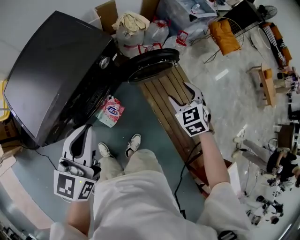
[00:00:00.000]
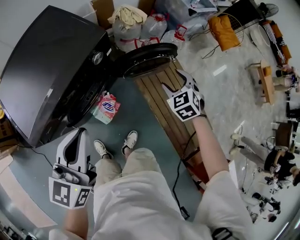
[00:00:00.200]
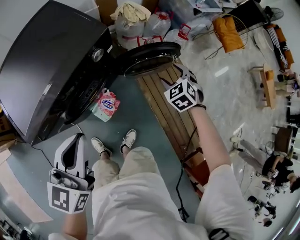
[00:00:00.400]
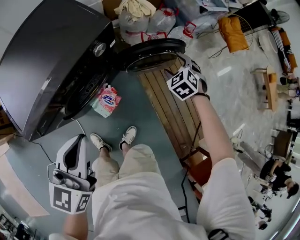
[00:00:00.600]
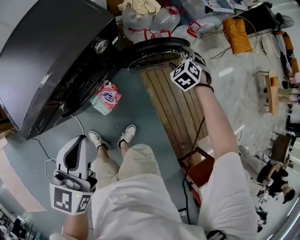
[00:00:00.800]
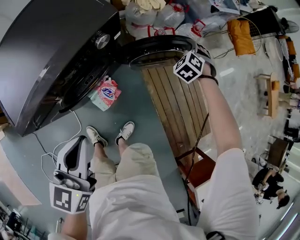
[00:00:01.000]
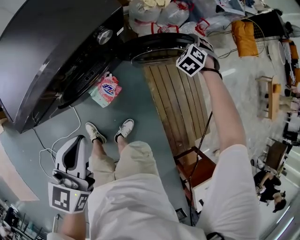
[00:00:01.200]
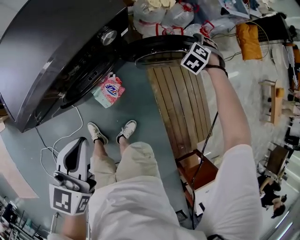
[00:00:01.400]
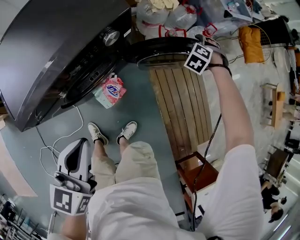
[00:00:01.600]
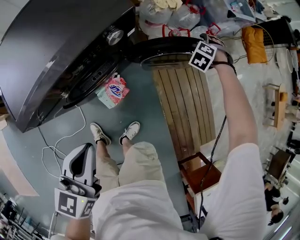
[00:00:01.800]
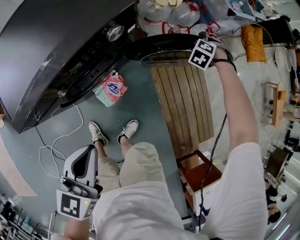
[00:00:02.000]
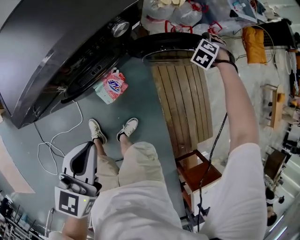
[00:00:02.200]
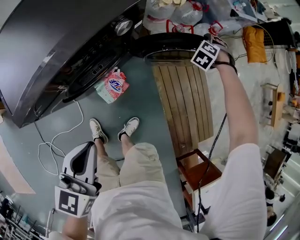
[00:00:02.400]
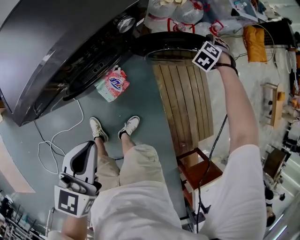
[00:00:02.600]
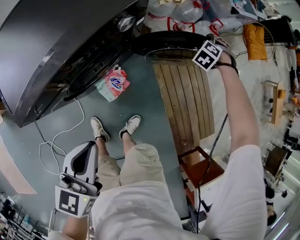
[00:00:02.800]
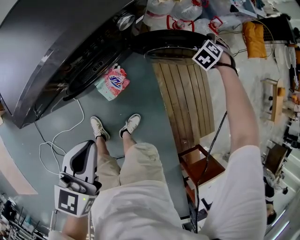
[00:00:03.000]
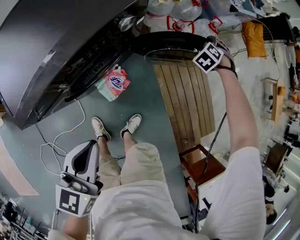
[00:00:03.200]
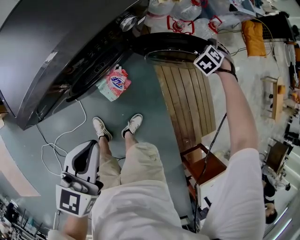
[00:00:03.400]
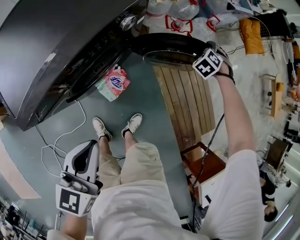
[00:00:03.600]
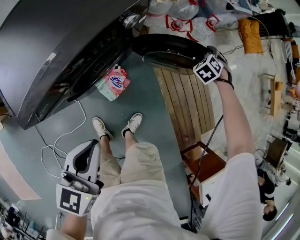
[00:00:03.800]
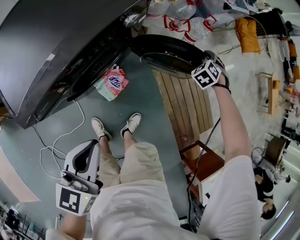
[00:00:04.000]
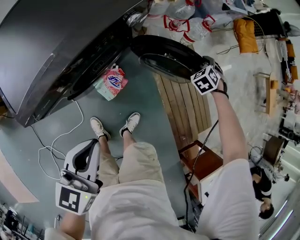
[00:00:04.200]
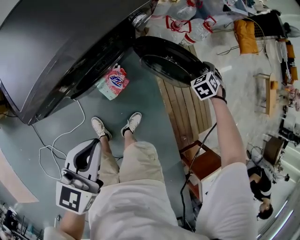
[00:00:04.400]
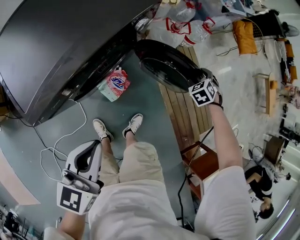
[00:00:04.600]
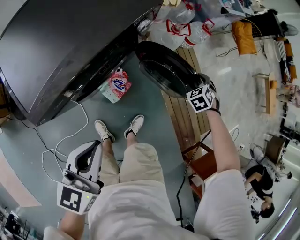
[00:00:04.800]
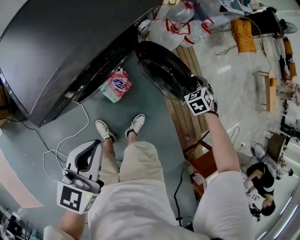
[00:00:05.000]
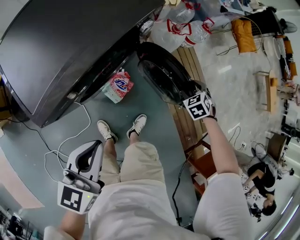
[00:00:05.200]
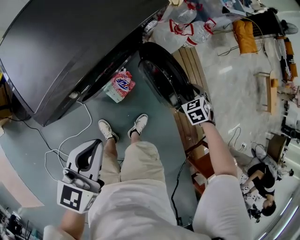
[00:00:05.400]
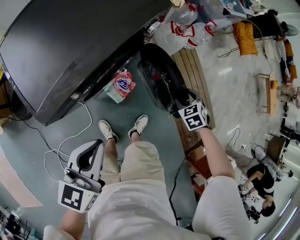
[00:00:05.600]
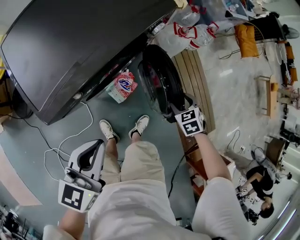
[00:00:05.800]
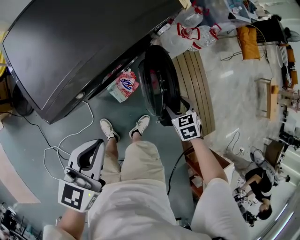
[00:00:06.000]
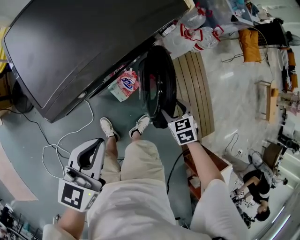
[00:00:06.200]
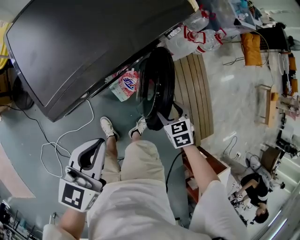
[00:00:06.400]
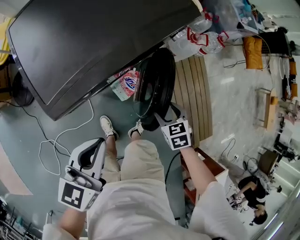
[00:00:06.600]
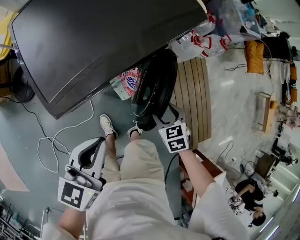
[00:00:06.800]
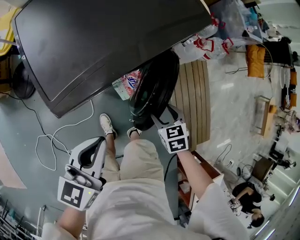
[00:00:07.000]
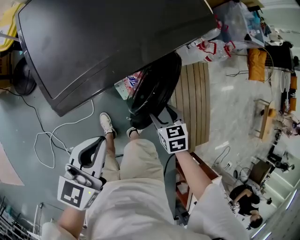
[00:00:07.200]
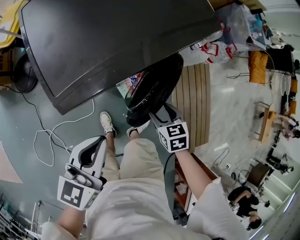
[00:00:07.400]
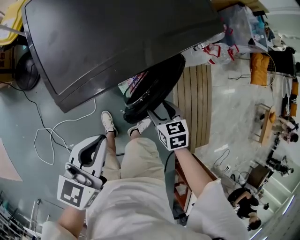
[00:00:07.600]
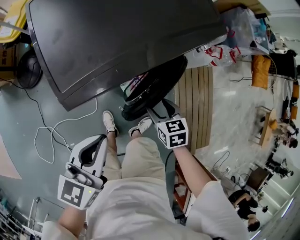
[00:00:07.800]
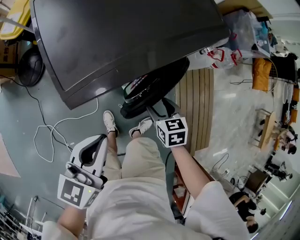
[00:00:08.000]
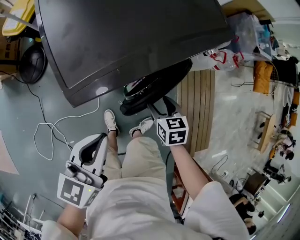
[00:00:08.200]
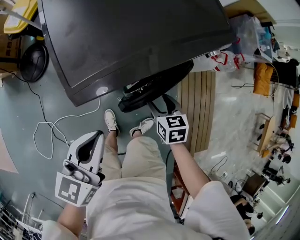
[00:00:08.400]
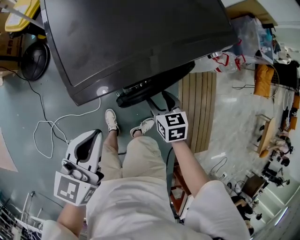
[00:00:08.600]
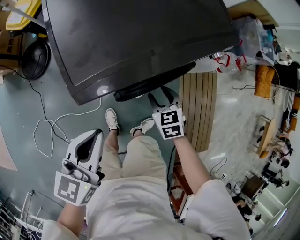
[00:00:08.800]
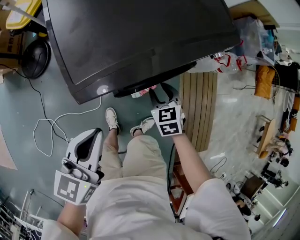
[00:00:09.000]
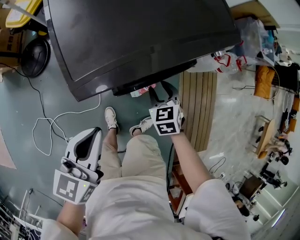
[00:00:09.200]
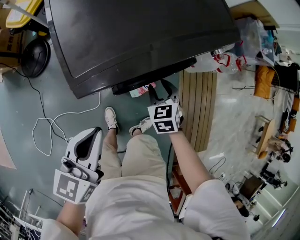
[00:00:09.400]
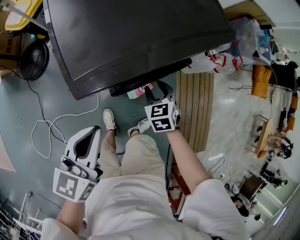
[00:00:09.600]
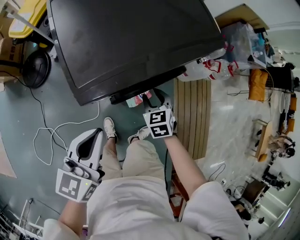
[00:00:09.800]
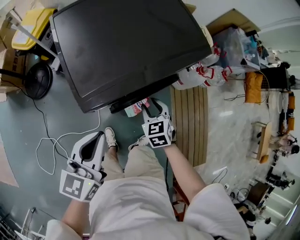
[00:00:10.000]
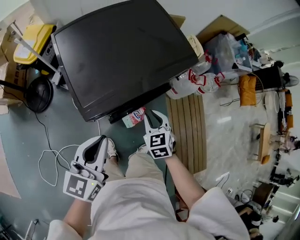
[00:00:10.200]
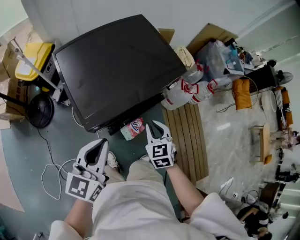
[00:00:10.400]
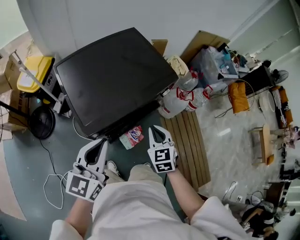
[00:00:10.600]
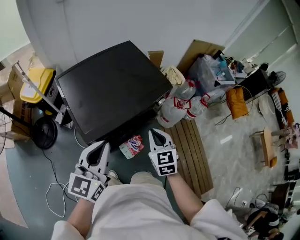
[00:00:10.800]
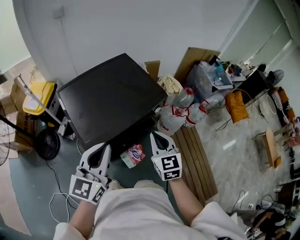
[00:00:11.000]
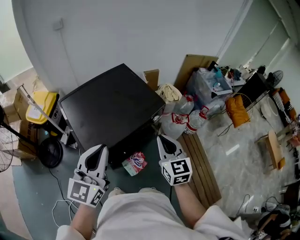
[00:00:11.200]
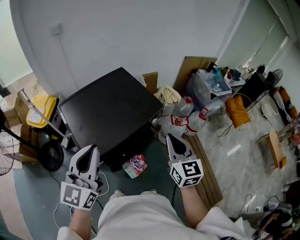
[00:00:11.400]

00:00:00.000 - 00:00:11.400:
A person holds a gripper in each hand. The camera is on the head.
00:00:00.000 - 00:00:01.400: The right gripper goes approximately 30 cm forward and downward, and changes its angle by about 40 degrees. The left gripper shifts roughly 10 cm downward.
00:00:01.400 - 00:00:02.800: The left gripper ends up about 5 cm from where it was.
00:00:02.800 - 00:00:04.200: The left gripper shifts by about 5 cm. The right gripper travels backward by approximately 10 cm.
00:00:04.200 - 00:00:05.600: The left gripper is displaced to the left by approximately 5 cm, while the right gripper goes roughly 20 cm backward, and rotates some 20 degrees.
00:00:05.600 - 00:00:07.200: The right gripper travels to the left by some 20 cm, and swivels approximately 20 degrees; the left gripper is displaced to the left by about 5 cm.
00:00:07.200 - 00:00:08.600: The left gripper is displaced to the left by about 5 cm, while the right gripper goes about 10 cm to the left and forward.
00:00:08.600 - 00:00:10.000: Both grippers travel together upward, roughly 5 cm.
00:00:10.000 - 00:00:11.400: The left gripper heads upward, covering approximately 25 cm, and turns by some 30 degrees, while the right gripper shifts approximately 40 cm upward and to the right, tilts its fingers roughly 40 degrees upward, and closes its fingers.

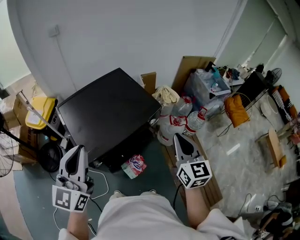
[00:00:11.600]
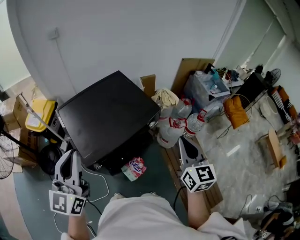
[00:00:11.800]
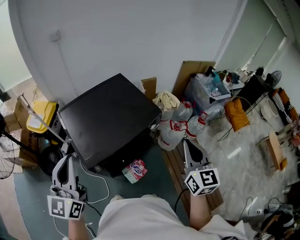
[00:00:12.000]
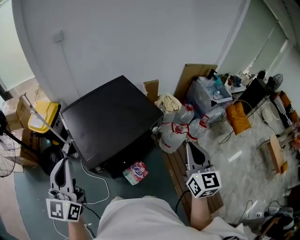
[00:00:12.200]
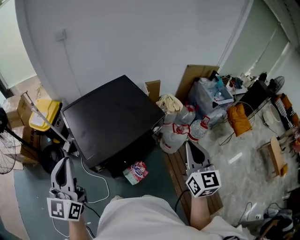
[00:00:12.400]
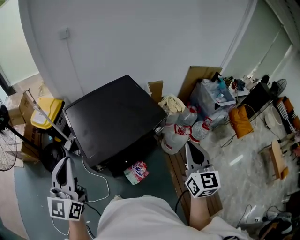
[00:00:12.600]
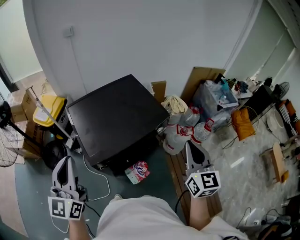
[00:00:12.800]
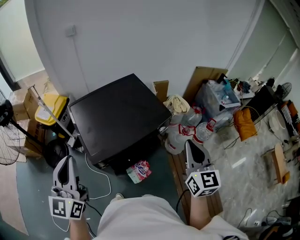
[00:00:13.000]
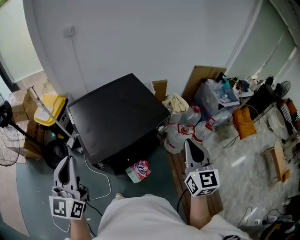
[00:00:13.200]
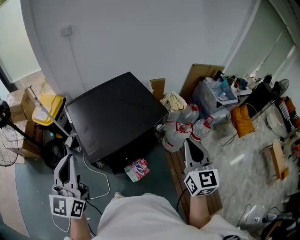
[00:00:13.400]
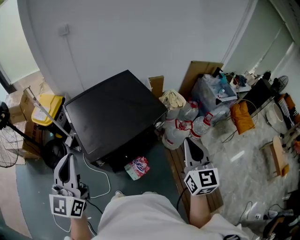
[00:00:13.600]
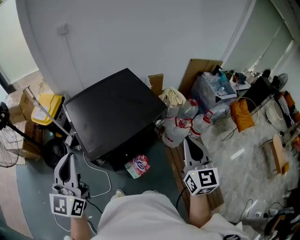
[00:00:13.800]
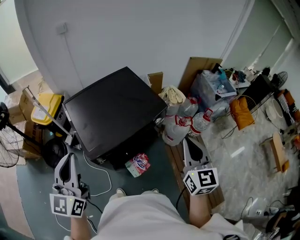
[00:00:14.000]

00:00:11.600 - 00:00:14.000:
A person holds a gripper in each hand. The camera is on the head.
00:00:11.600 - 00:00:12.800: The left gripper moves to the left, some 5 cm.
00:00:12.800 - 00:00:14.000: The grippers make only small movements.

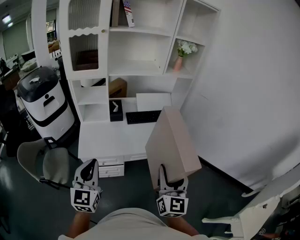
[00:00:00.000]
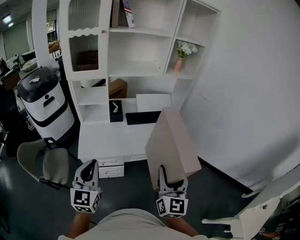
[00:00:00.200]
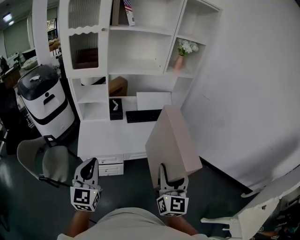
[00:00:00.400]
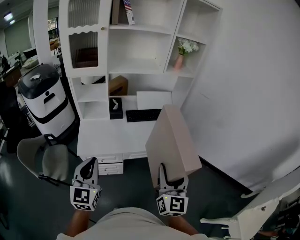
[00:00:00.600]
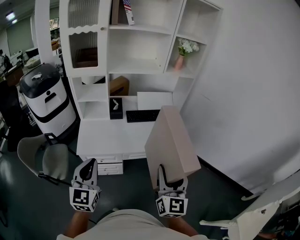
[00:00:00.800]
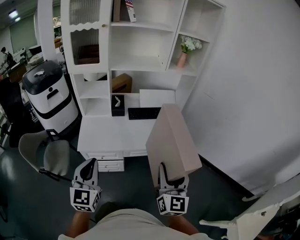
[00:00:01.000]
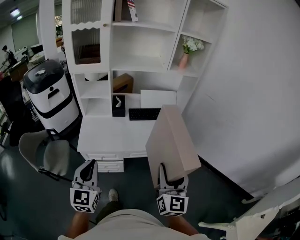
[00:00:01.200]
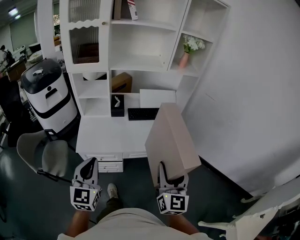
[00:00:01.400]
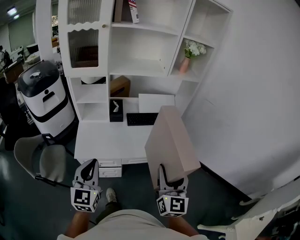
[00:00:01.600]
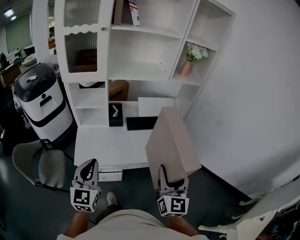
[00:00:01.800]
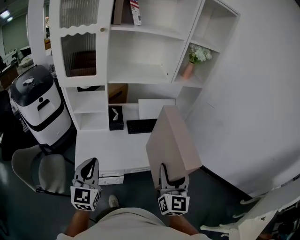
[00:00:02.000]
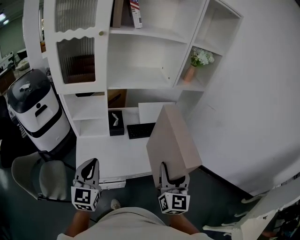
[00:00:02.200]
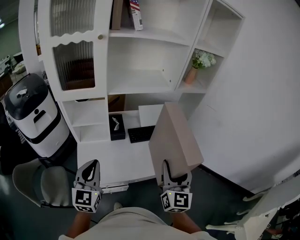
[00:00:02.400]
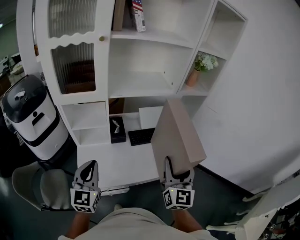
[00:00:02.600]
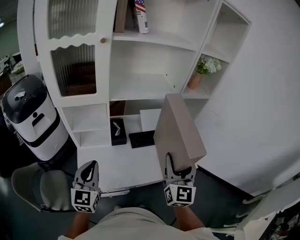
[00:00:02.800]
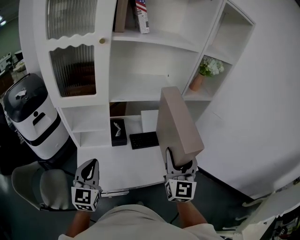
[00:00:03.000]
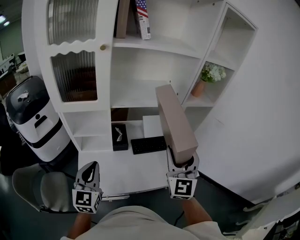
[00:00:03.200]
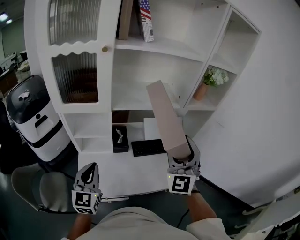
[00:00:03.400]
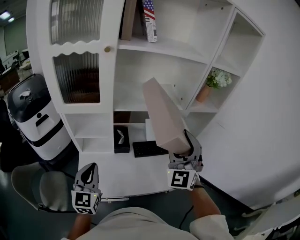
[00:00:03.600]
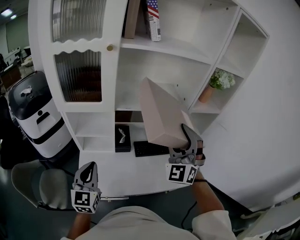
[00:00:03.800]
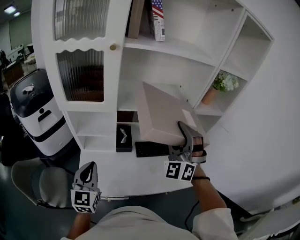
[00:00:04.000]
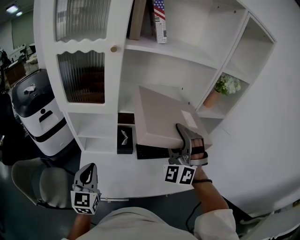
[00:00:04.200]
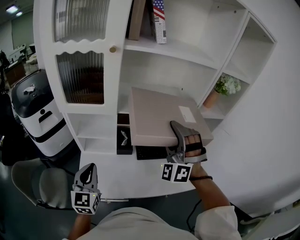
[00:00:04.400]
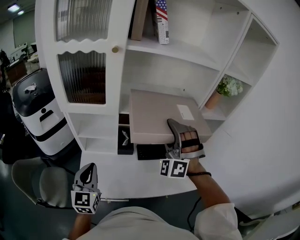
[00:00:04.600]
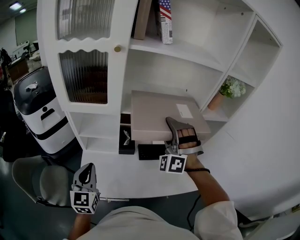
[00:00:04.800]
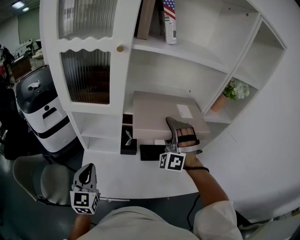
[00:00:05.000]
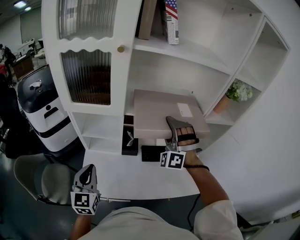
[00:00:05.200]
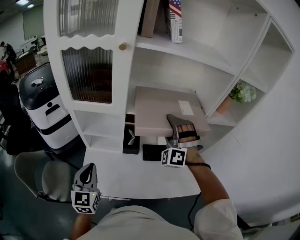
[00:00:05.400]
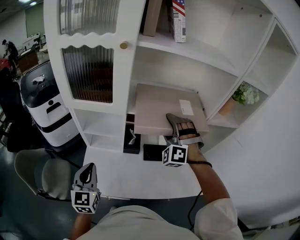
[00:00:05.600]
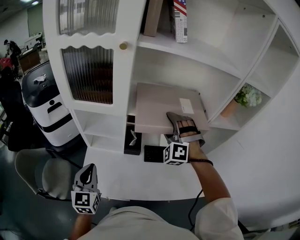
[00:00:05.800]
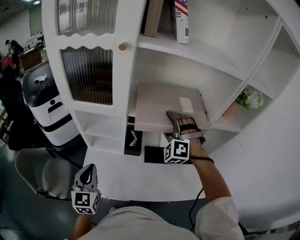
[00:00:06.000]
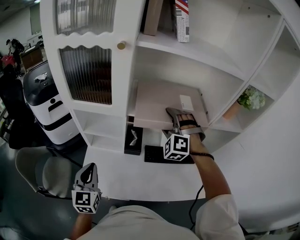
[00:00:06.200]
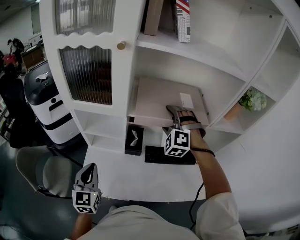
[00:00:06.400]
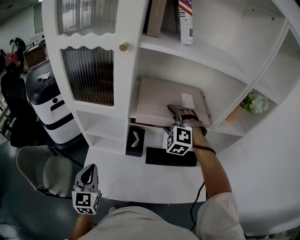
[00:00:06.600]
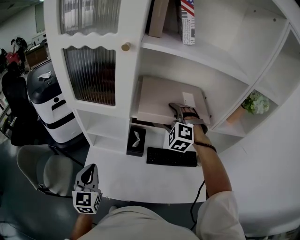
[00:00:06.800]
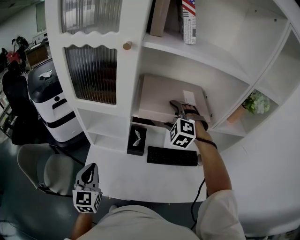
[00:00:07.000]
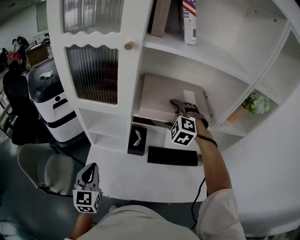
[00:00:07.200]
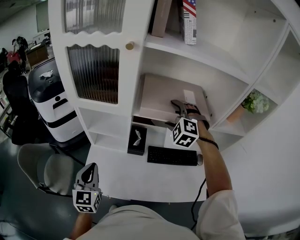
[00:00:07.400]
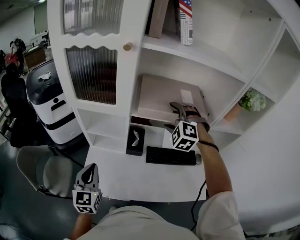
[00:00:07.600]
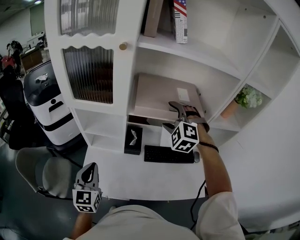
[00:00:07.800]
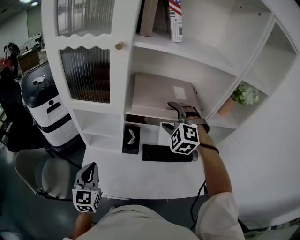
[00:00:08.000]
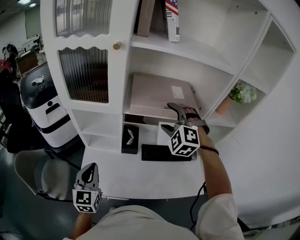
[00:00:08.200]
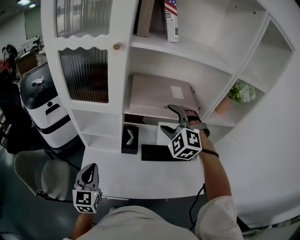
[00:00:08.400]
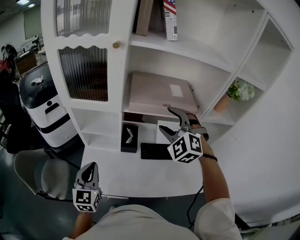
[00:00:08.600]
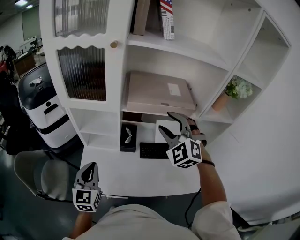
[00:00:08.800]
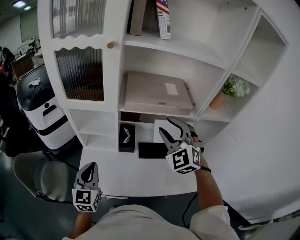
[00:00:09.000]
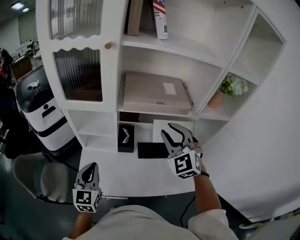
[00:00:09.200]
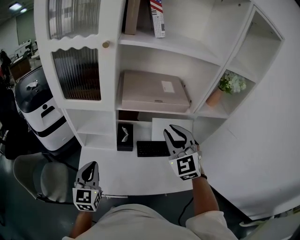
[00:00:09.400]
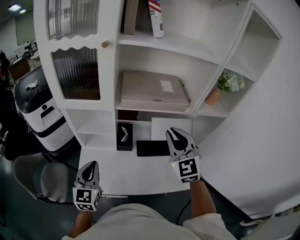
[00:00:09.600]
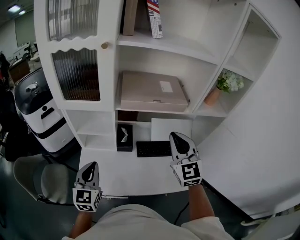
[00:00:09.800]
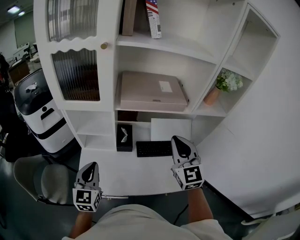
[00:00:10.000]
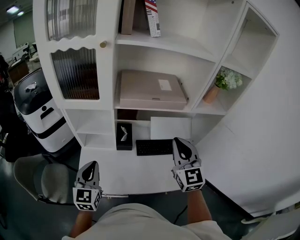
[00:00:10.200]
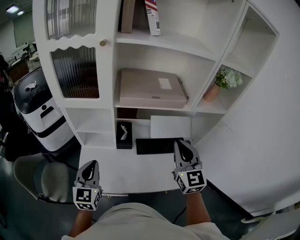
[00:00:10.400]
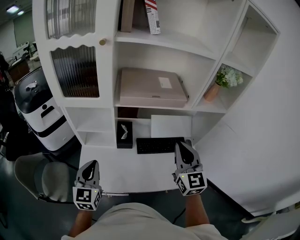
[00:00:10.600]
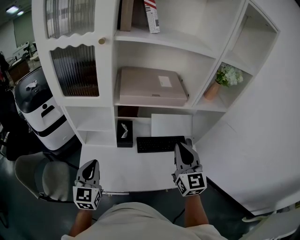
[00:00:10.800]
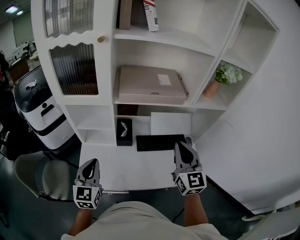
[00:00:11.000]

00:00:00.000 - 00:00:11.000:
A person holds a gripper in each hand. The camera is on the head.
00:00:00.000 - 00:00:01.600: The left gripper shifts by some 5 cm; the right gripper moves forward, some 5 cm.
00:00:01.600 - 00:00:03.200: The left gripper moves forward and to the left, about 25 cm. The right gripper is displaced forward by approximately 30 cm, and turns by approximately 20 degrees.
00:00:03.200 - 00:00:04.800: The left gripper moves roughly 5 cm, while the right gripper shifts about 20 cm forward and to the left, and rolls counterclockwise, seen from behind, by roughly 70 degrees.
00:00:04.800 - 00:00:06.200: The right gripper goes roughly 10 cm forward and downward, and turns by some 20 degrees.
00:00:06.200 - 00:00:07.800: The grippers stay close to where they were, moving slightly.
00:00:07.800 - 00:00:09.400: The right gripper moves backward, about 15 cm, rotates some 40 degrees, and closes up.
00:00:09.400 - 00:00:11.000: The right gripper travels backward and to the right by about 10 cm, and turns by approximately 30 degrees.
